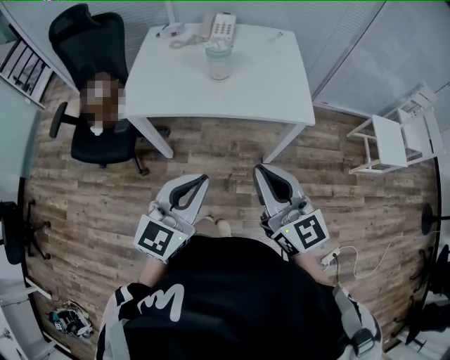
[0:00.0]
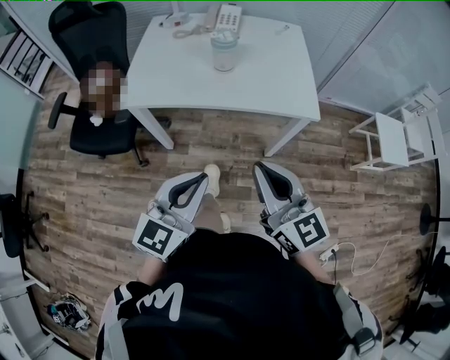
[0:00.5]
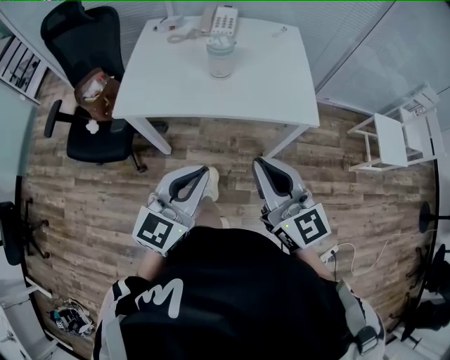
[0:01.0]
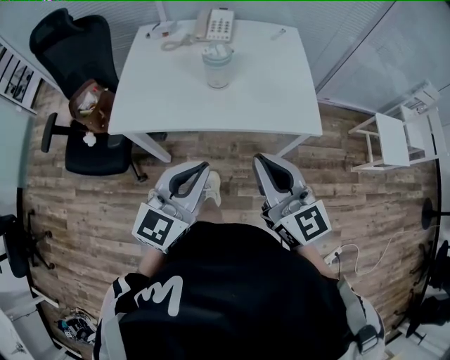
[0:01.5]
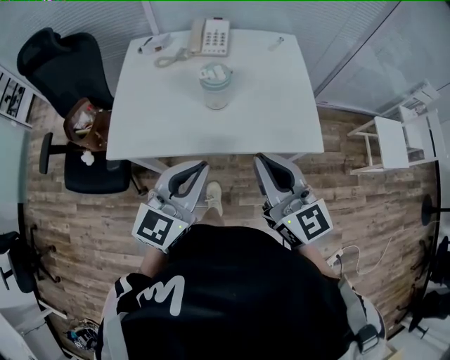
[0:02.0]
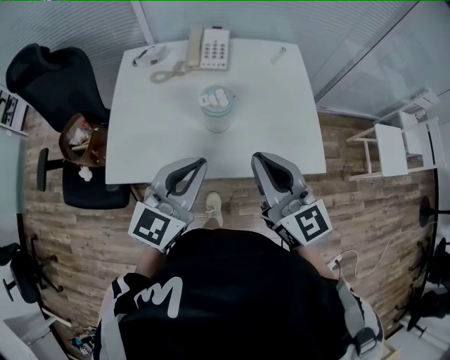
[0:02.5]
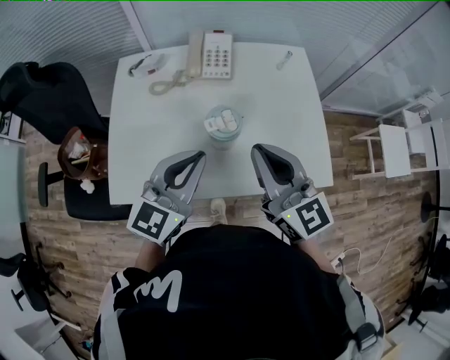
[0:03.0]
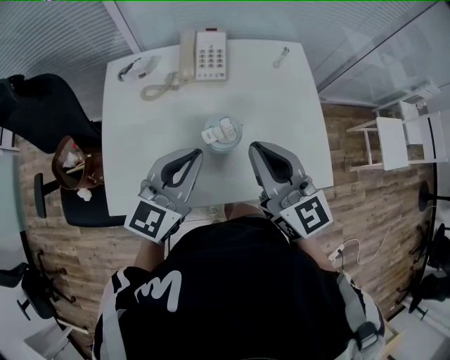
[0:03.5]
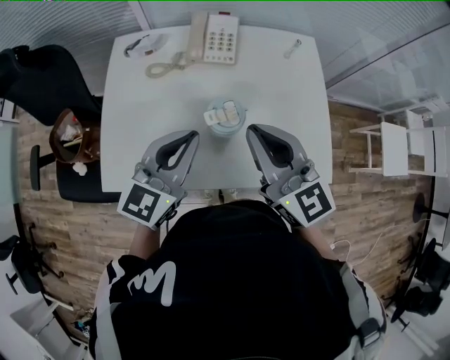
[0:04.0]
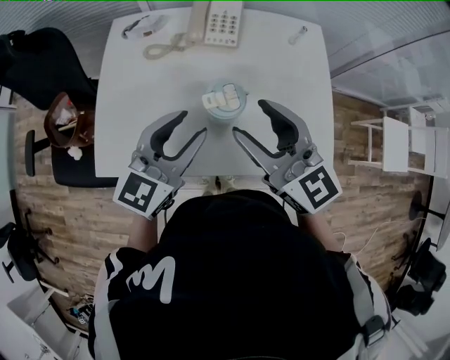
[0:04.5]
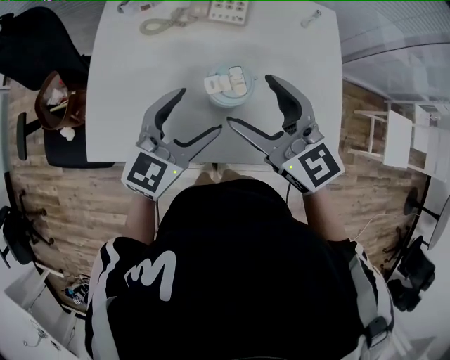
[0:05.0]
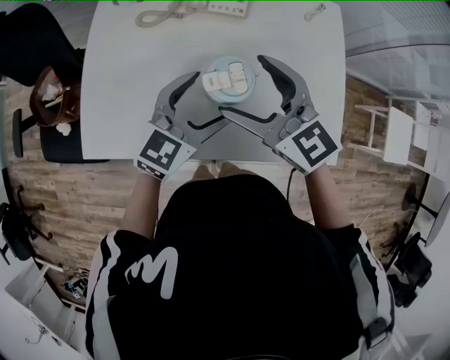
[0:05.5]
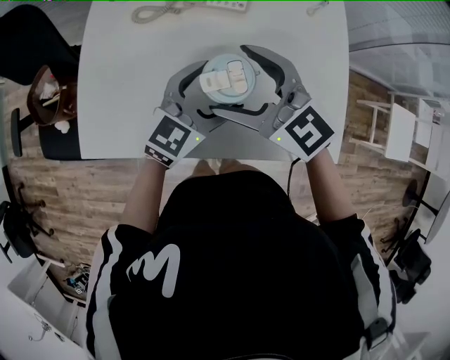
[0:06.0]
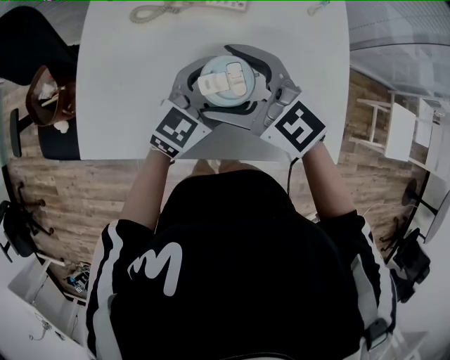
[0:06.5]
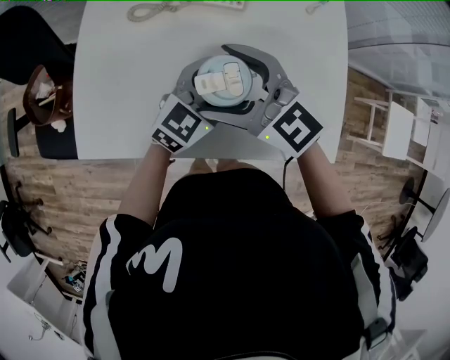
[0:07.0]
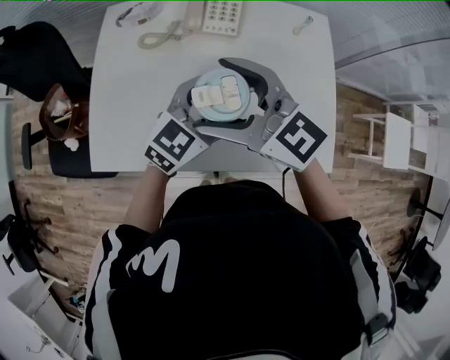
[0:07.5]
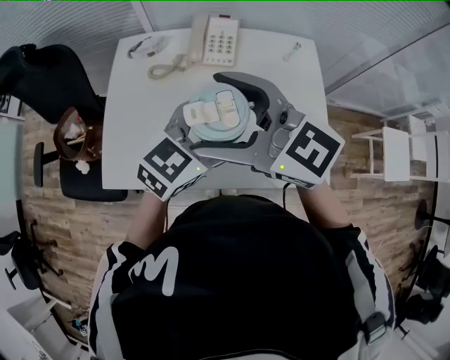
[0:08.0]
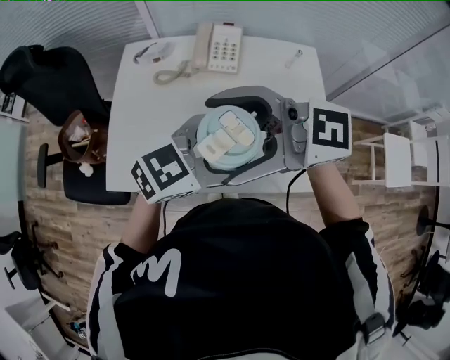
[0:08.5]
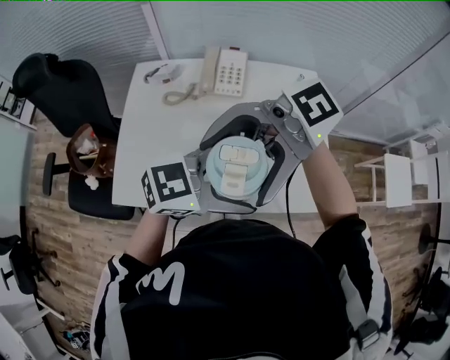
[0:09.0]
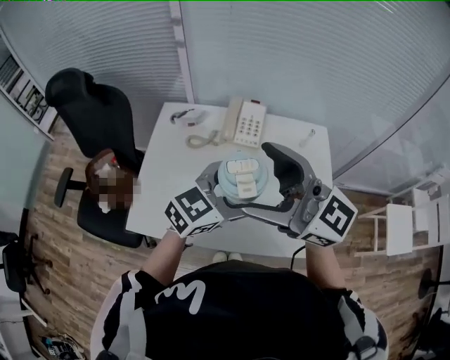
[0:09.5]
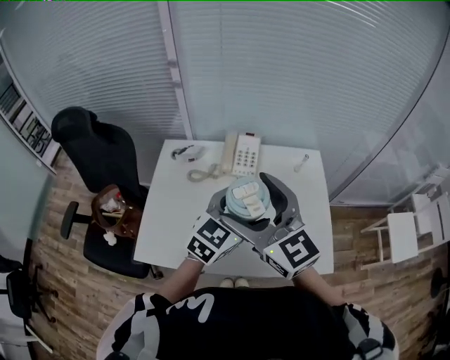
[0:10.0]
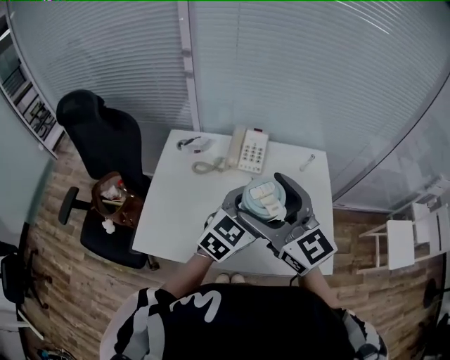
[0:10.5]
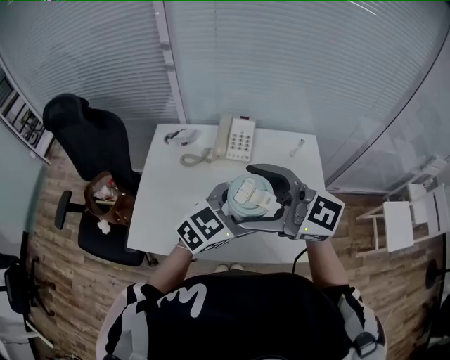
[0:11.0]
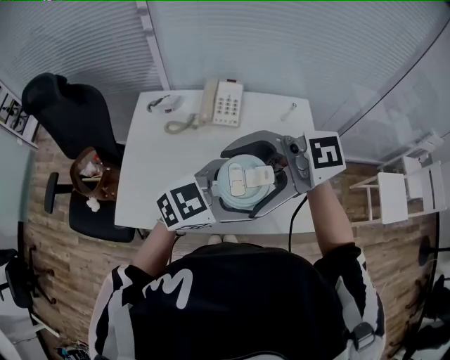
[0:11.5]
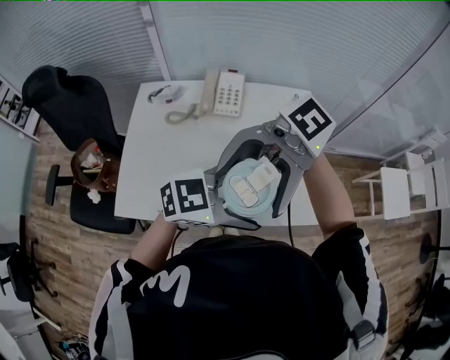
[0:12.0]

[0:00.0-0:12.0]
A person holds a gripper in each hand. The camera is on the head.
0.0 to 2.0 s: Both grippers move forward, about 20 cm.
2.0 to 4.0 s: The two grippers go roughly 20 cm forward.
4.0 to 6.0 s: The right gripper moves downward, some 10 cm, changes its angle by some 30 degrees, and opens its fingers; the left gripper moves downward and to the right, about 15 cm, and opens.
6.0 to 8.0 s: Both grippers travel together upward, about 15 cm.
8.0 to 10.0 s: The right gripper is displaced upward by about 5 cm, and turns by some 20 degrees.
10.0 to 12.0 s: The right gripper changes place by approximately 15 cm, and turns by some 100 degrees. The left gripper shifts by approximately 15 cm, and swivels about 40 degrees.

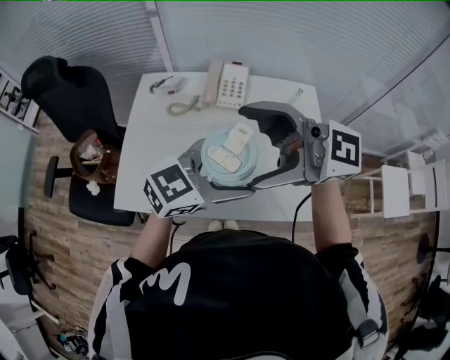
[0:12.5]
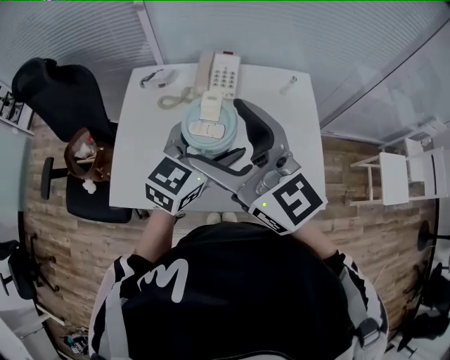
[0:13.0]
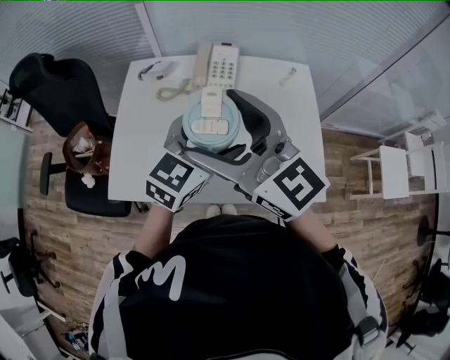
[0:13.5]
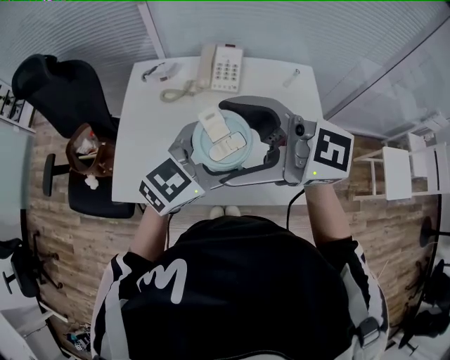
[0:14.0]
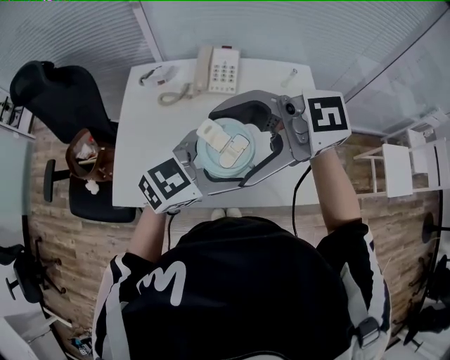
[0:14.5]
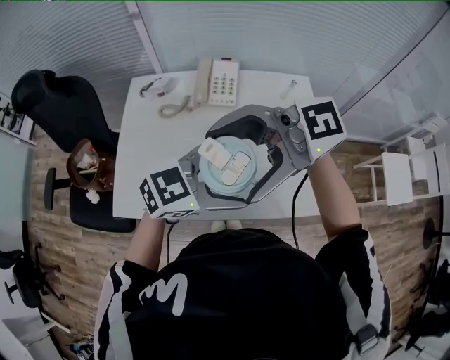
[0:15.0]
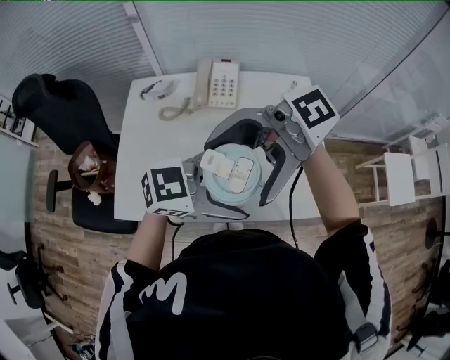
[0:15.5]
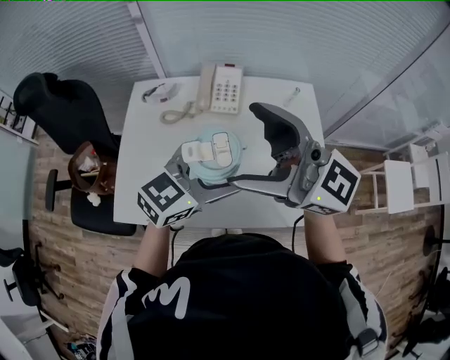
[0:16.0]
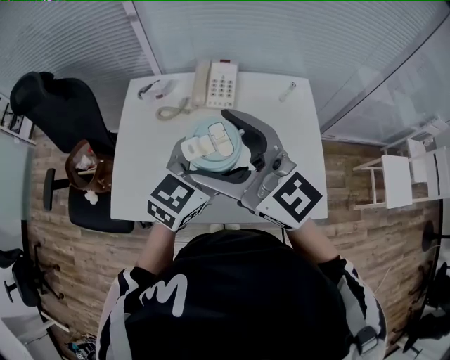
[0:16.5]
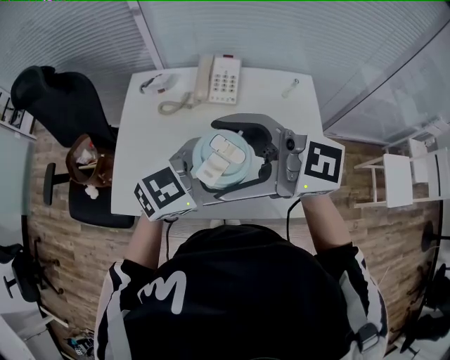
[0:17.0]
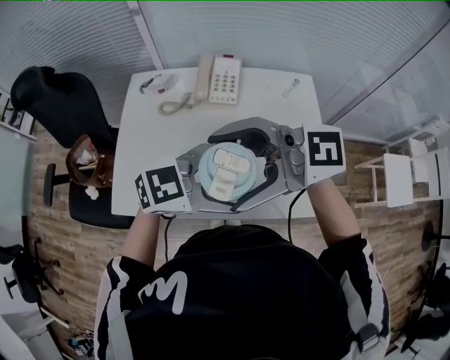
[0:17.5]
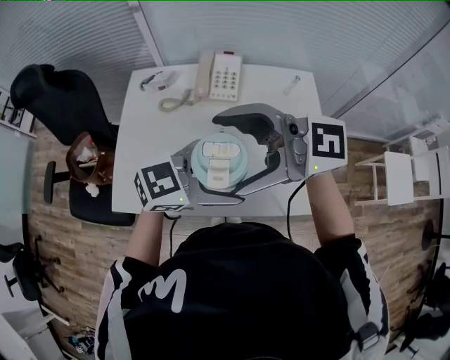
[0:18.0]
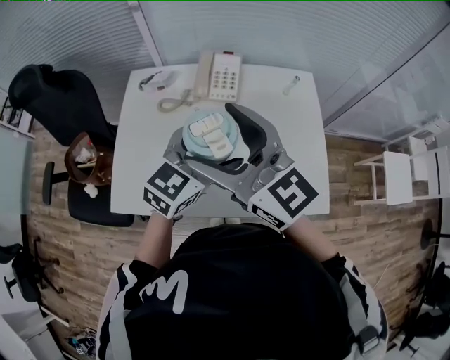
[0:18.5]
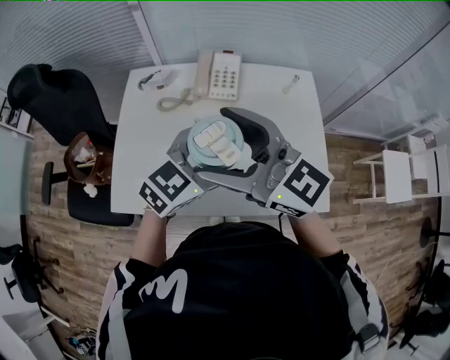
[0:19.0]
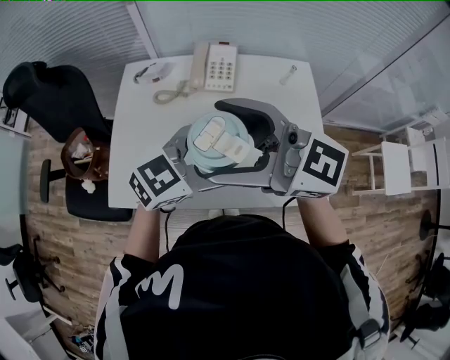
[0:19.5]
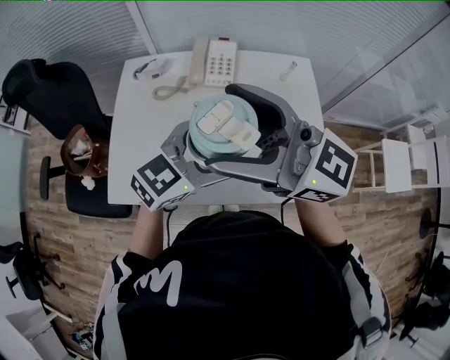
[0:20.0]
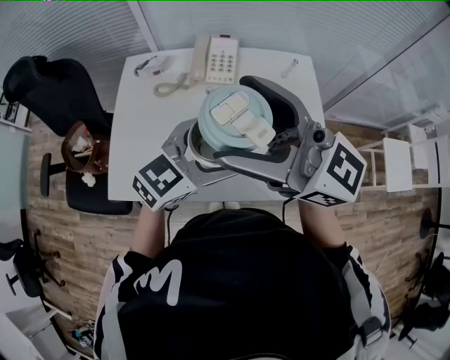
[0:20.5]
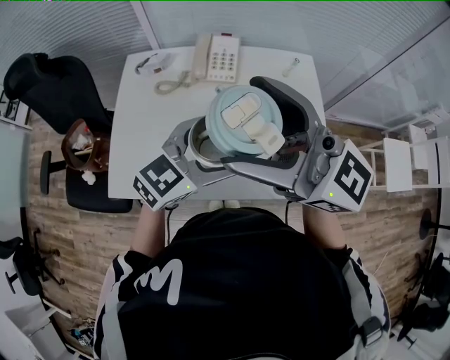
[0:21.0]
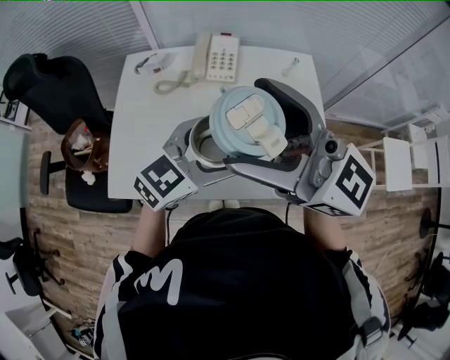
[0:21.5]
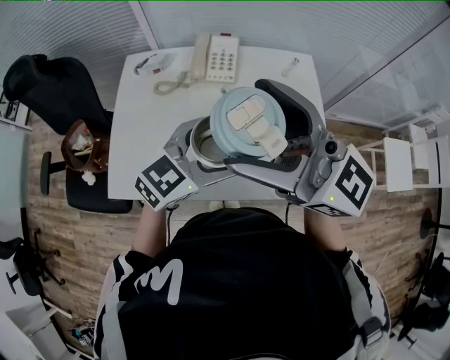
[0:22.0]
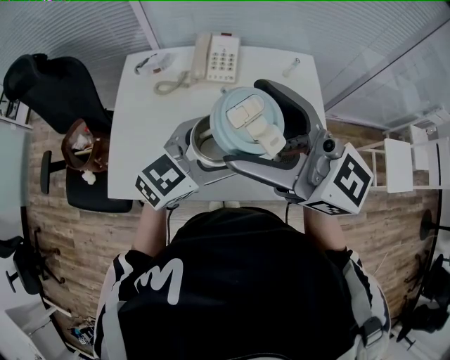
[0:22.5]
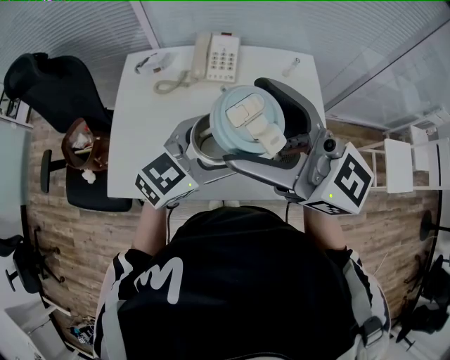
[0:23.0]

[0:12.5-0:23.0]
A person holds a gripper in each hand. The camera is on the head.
14.5 to 16.5 s: The left gripper shifts by some 5 cm, and rotates about 20 degrees; the right gripper changes place by about 5 cm, and turns by roughly 50 degrees.
19.0 to 21.0 s: The right gripper goes roughly 5 cm upward.
21.0 to 23.0 s: Both grippers stay put.

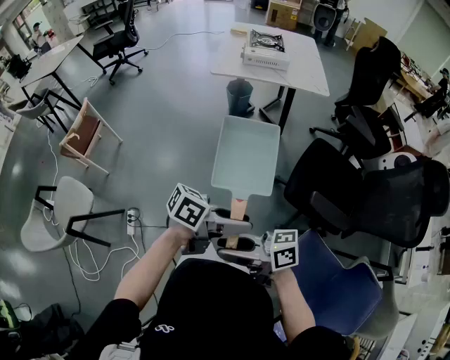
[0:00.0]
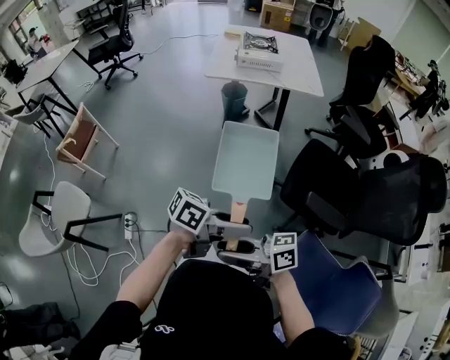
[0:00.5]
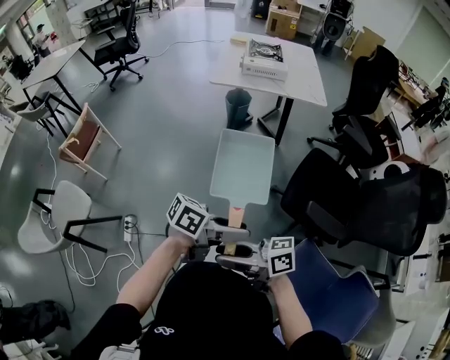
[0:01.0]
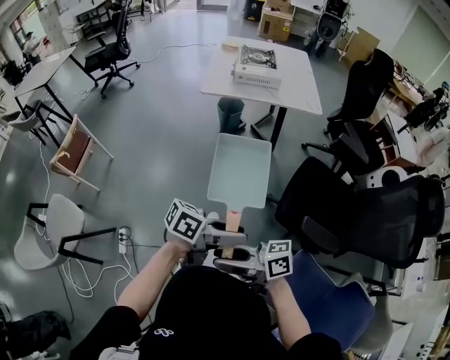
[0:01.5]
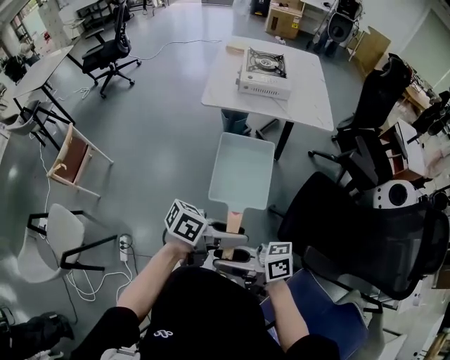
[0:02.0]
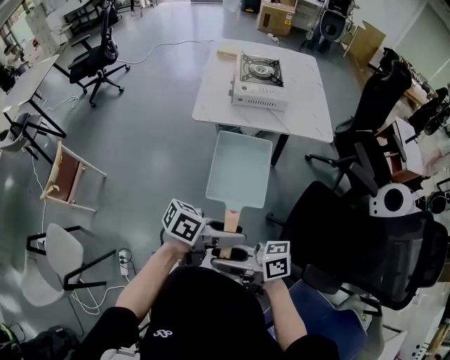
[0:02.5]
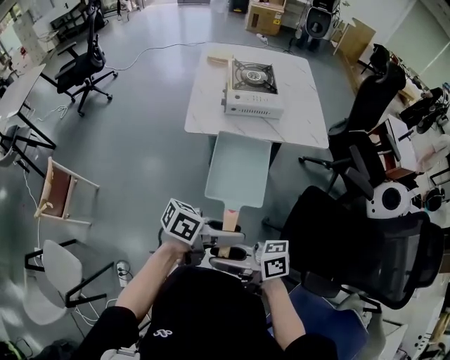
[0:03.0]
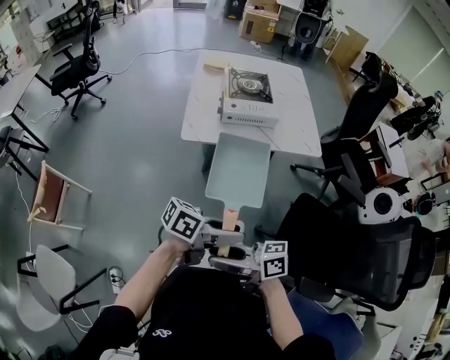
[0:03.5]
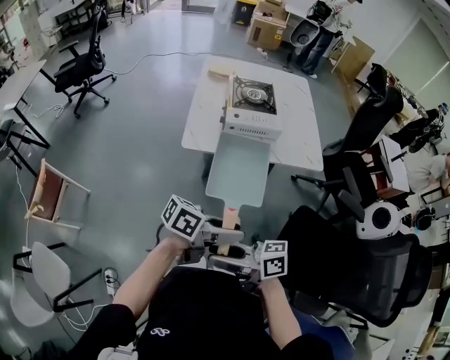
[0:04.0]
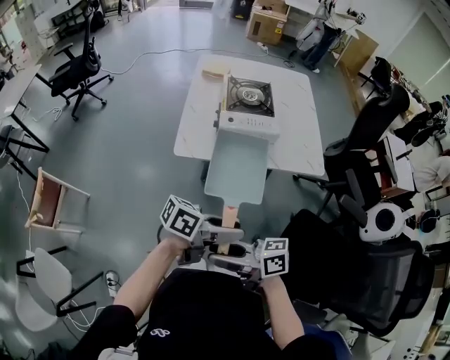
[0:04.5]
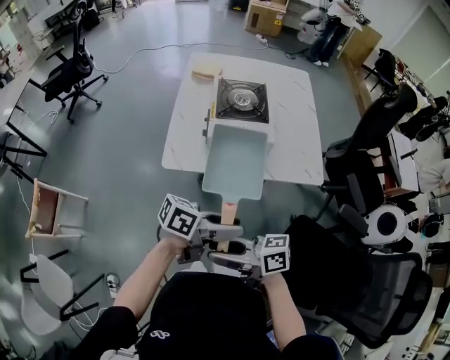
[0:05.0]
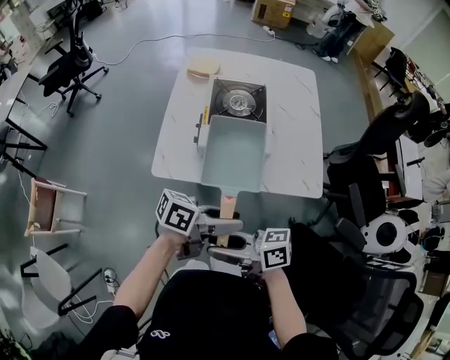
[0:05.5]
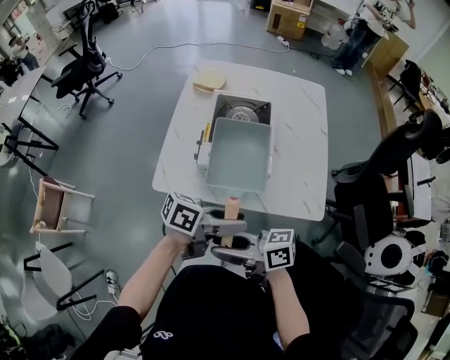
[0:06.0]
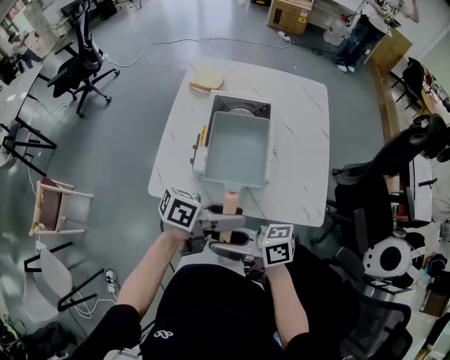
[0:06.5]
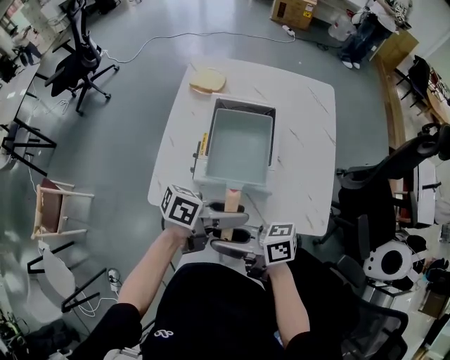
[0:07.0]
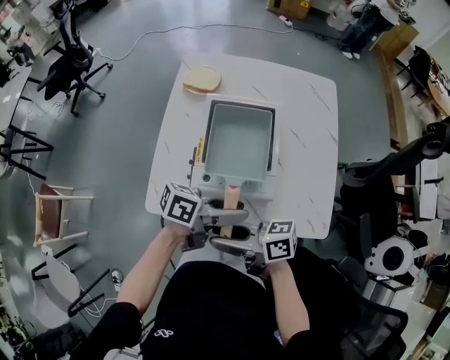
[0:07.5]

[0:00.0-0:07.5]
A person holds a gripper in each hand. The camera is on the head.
0.0 to 2.0 s: The right gripper moves some 20 cm. Meanwhile the left gripper ends up about 20 cm from where it was.
2.0 to 4.0 s: The left gripper ends up roughly 20 cm from where it was, while the right gripper changes place by roughly 25 cm.
4.0 to 5.5 s: The right gripper ends up some 25 cm from where it was. Meanwhile the left gripper ends up approximately 25 cm from where it was.
5.5 to 7.5 s: The right gripper ends up approximately 20 cm from where it was. Meanwhile the left gripper ends up some 20 cm from where it was.
